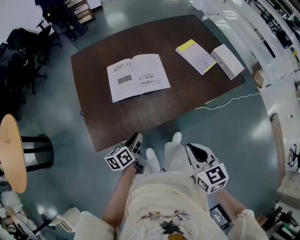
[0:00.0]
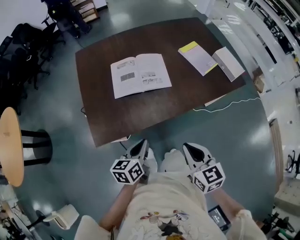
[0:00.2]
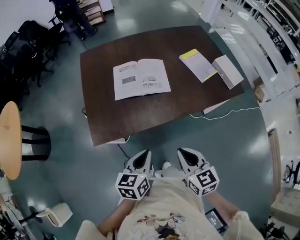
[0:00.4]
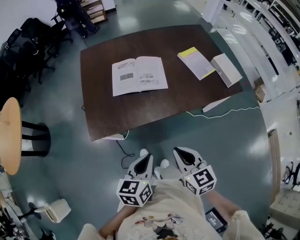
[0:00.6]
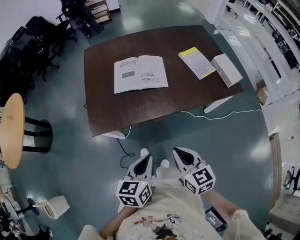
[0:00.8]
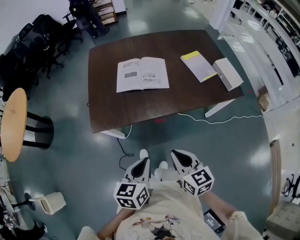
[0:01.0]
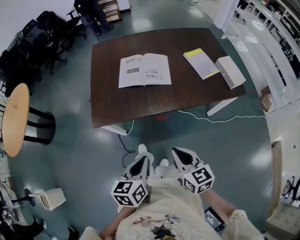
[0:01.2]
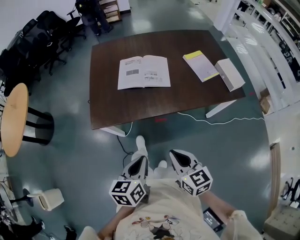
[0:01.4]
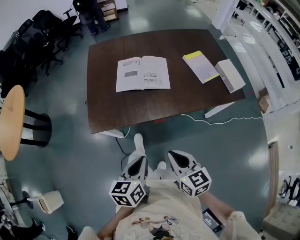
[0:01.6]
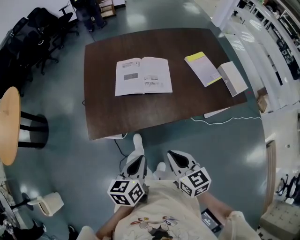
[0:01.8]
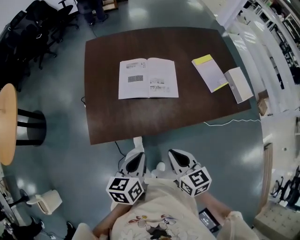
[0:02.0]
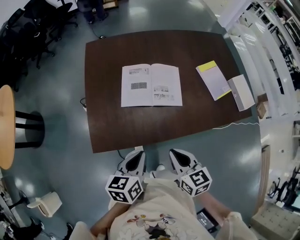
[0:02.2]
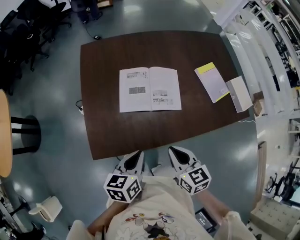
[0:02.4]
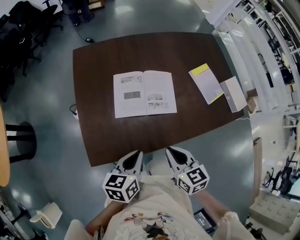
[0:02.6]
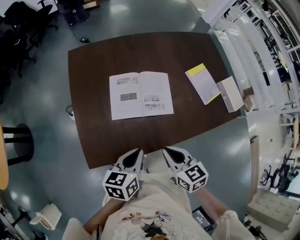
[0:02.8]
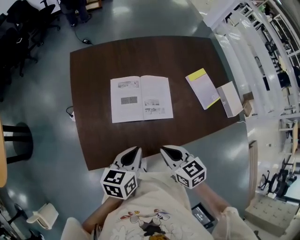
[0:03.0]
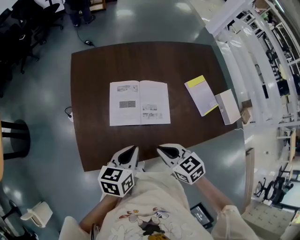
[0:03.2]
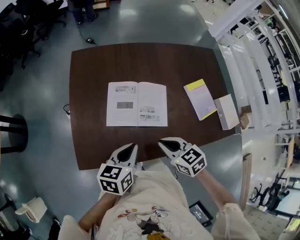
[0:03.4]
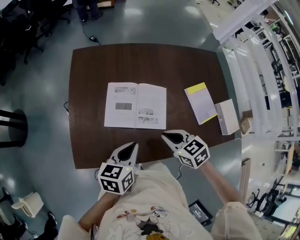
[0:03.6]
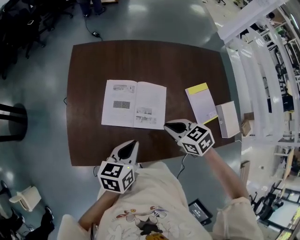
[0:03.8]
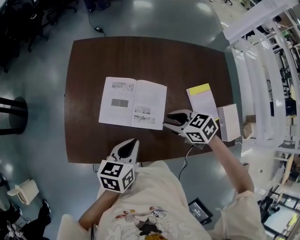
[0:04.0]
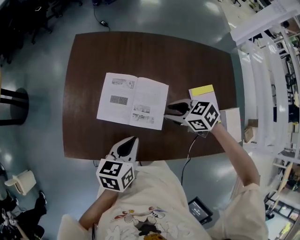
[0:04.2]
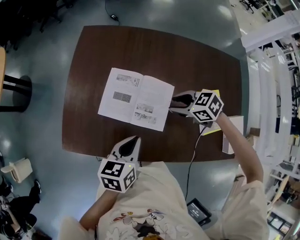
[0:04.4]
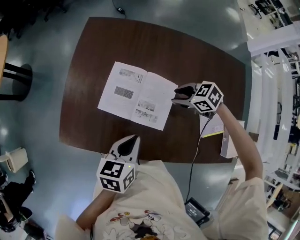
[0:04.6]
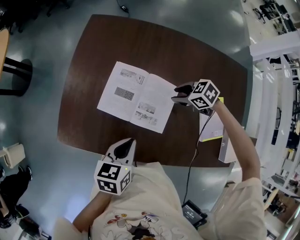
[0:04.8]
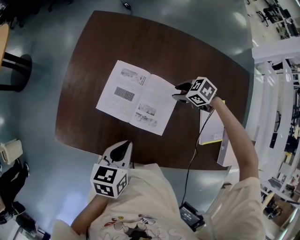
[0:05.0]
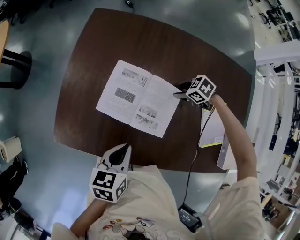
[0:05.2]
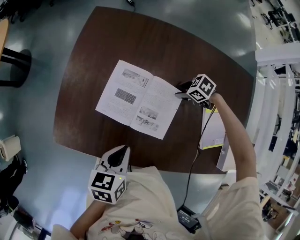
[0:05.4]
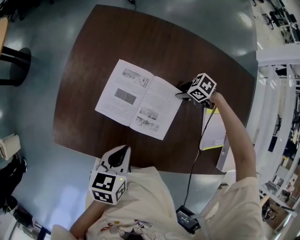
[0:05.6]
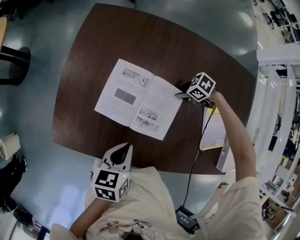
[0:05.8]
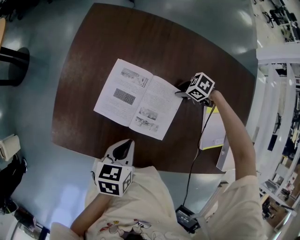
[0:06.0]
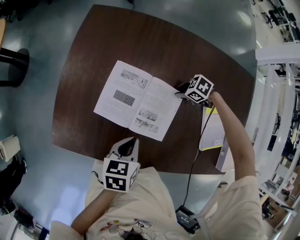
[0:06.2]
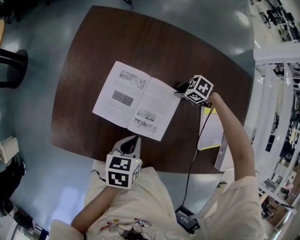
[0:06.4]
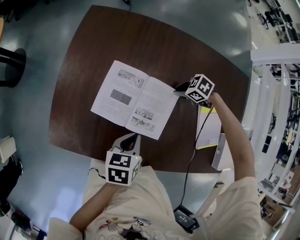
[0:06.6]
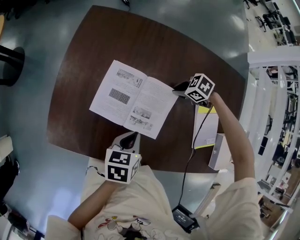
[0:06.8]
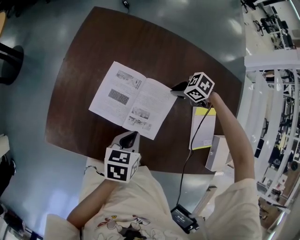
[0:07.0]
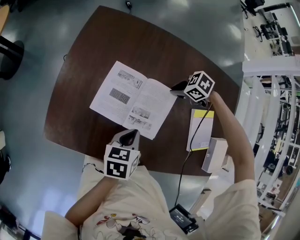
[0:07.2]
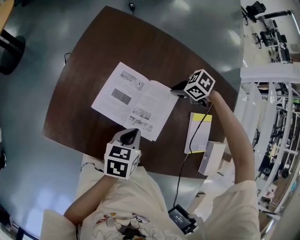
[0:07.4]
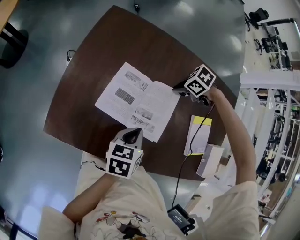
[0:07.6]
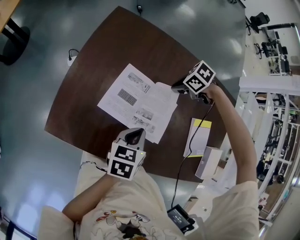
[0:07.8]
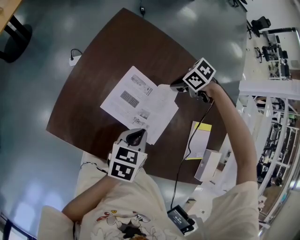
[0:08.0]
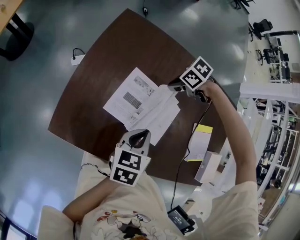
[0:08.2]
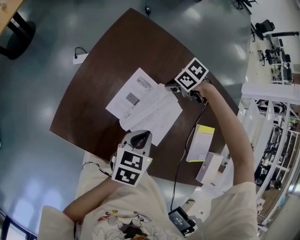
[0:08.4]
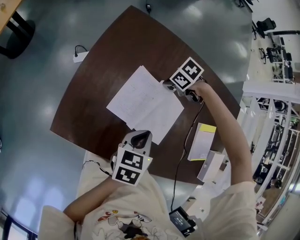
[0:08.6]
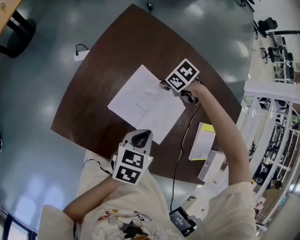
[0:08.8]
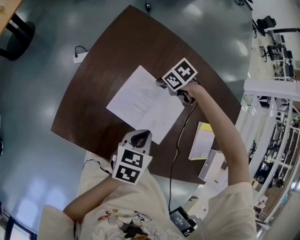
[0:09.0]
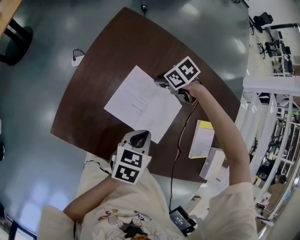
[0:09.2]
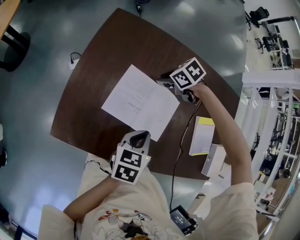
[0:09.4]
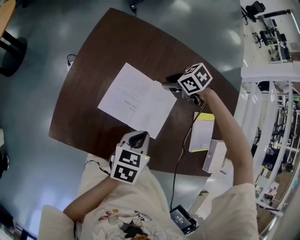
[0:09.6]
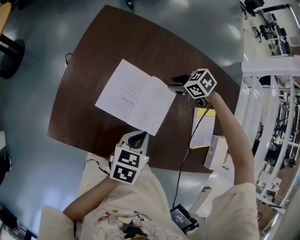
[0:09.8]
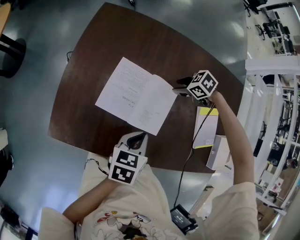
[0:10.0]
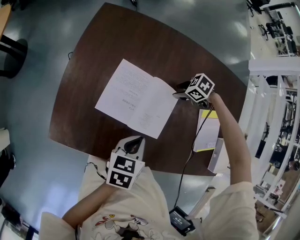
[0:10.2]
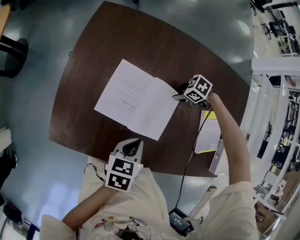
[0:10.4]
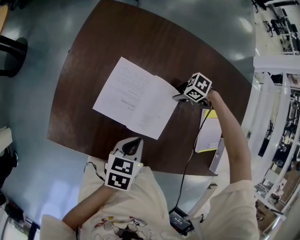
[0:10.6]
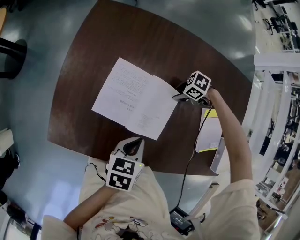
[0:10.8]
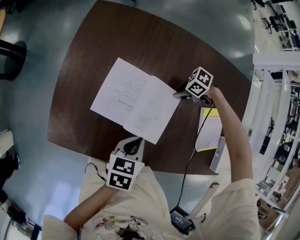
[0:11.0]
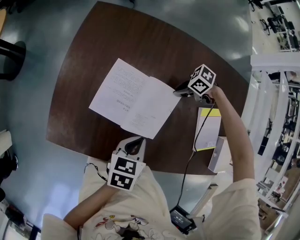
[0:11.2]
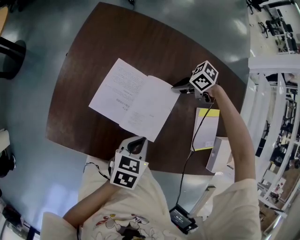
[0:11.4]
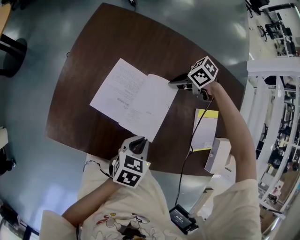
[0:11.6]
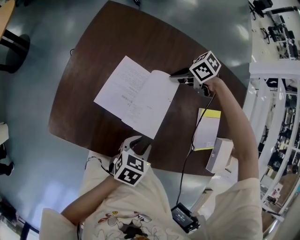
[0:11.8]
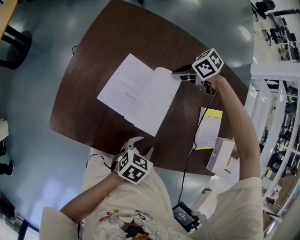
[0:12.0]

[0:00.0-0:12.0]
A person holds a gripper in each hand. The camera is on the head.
0:00.0 to 0:01.6: The right gripper travels backward by some 10 cm. Meanwhile the left gripper heads backward and upward, covering about 25 cm, and rotates roughly 20 degrees.
0:01.6 to 0:03.0: The grippers both shift forward by some 30 cm.
0:03.0 to 0:04.4: The left gripper moves some 15 cm. Meanwhile the right gripper changes place by some 30 cm, swivels roughly 50 degrees, and opens its fingers.
0:04.4 to 0:06.0: The right gripper moves downward, approximately 20 cm, and turns by about 30 degrees; the left gripper is displaced downward by approximately 10 cm.
0:06.0 to 0:07.6: The right gripper shifts about 10 cm upward, and closes.
0:07.6 to 0:09.0: The right gripper shifts by roughly 15 cm.
0:09.0 to 0:10.4: The left gripper shifts by approximately 5 cm. The right gripper moves roughly 20 cm, and opens its fingers.
0:10.4 to 0:12.0: The left gripper shifts by some 10 cm, and opens its fingers, while the right gripper travels upward by some 10 cm, and closes up.

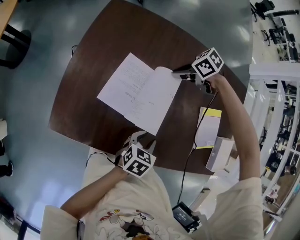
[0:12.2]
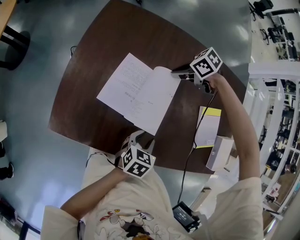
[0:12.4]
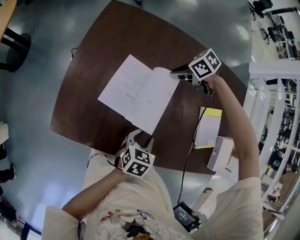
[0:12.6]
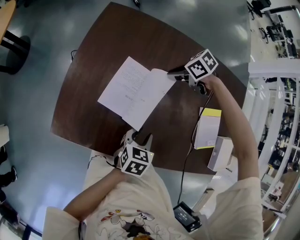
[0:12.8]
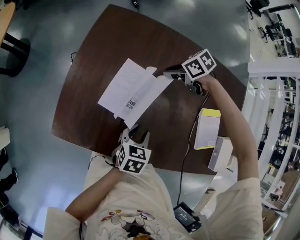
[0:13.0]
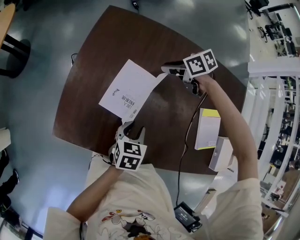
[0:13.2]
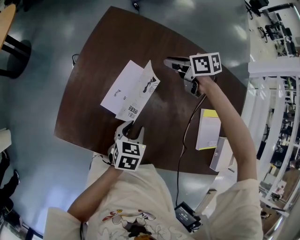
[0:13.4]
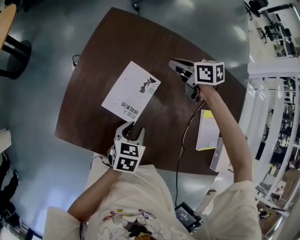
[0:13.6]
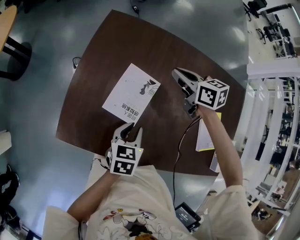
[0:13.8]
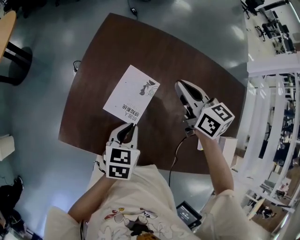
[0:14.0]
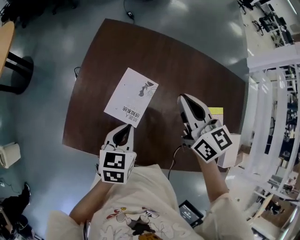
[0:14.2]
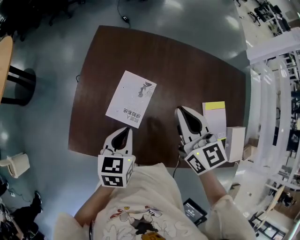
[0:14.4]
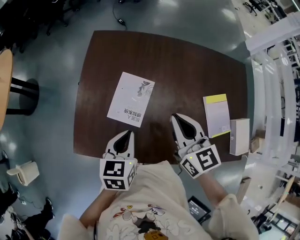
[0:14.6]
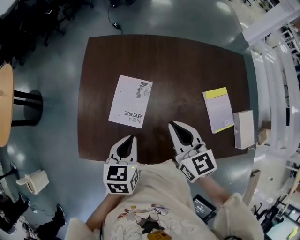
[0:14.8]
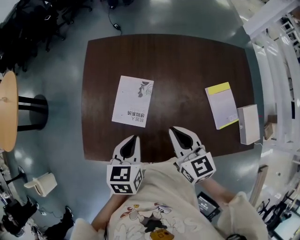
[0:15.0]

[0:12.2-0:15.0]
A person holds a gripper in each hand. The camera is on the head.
0:12.2 to 0:13.6: The left gripper shifts by about 10 cm; the right gripper is displaced upward by roughly 5 cm, and rotates about 40 degrees.
0:13.6 to 0:15.0: The left gripper moves upward, roughly 15 cm, and closes, while the right gripper travels backward by some 30 cm, and changes its angle by some 40 degrees.

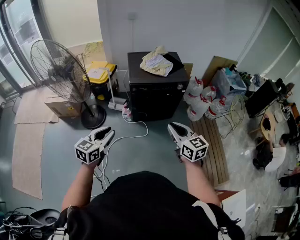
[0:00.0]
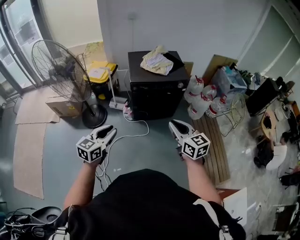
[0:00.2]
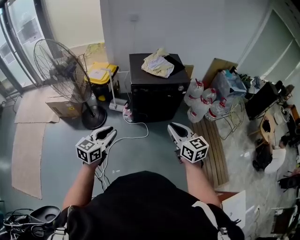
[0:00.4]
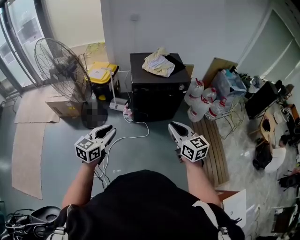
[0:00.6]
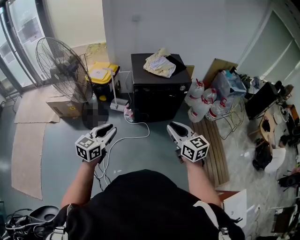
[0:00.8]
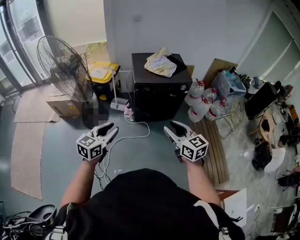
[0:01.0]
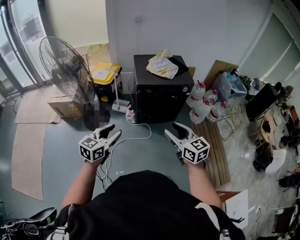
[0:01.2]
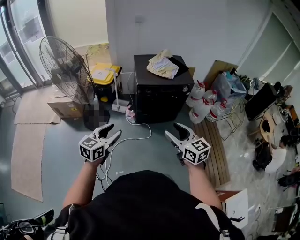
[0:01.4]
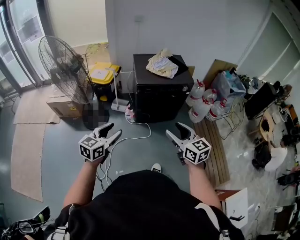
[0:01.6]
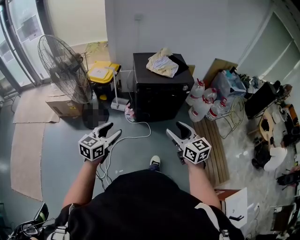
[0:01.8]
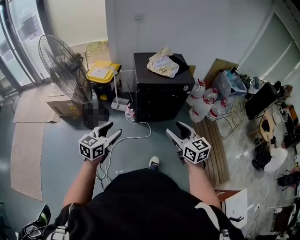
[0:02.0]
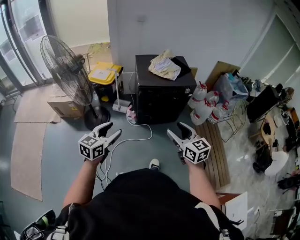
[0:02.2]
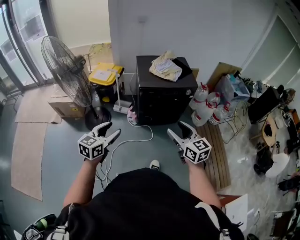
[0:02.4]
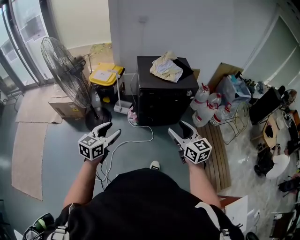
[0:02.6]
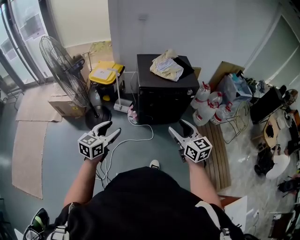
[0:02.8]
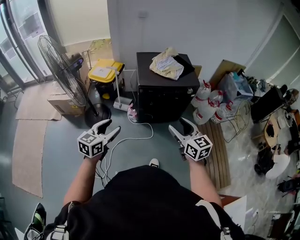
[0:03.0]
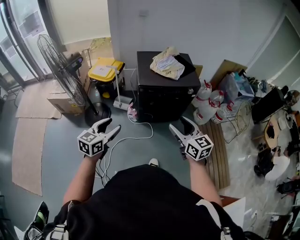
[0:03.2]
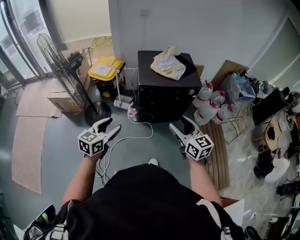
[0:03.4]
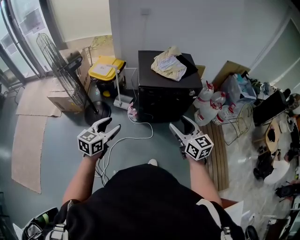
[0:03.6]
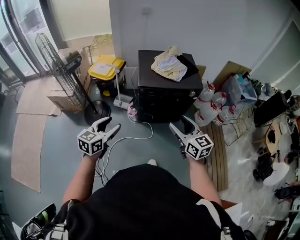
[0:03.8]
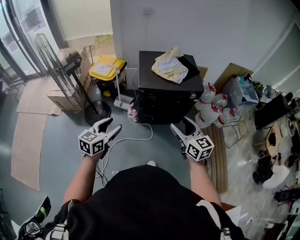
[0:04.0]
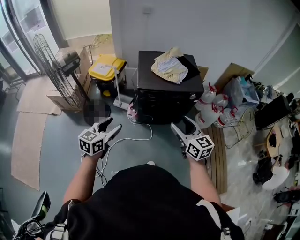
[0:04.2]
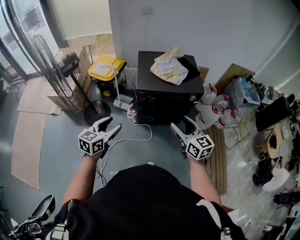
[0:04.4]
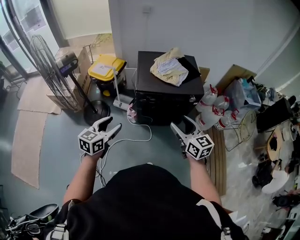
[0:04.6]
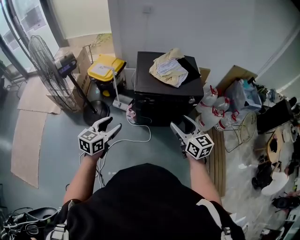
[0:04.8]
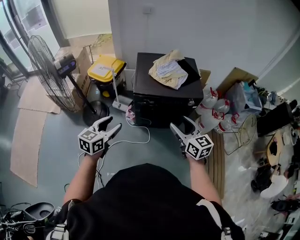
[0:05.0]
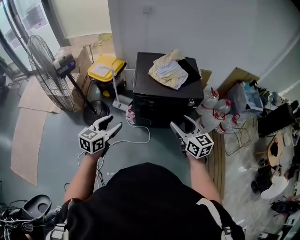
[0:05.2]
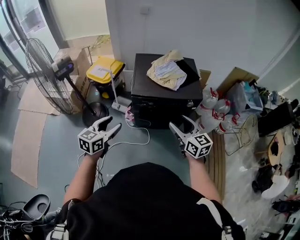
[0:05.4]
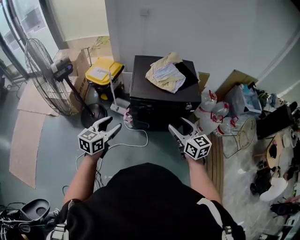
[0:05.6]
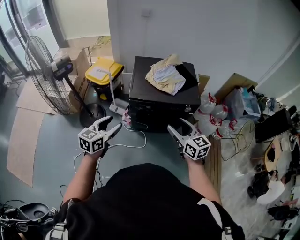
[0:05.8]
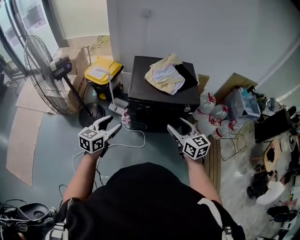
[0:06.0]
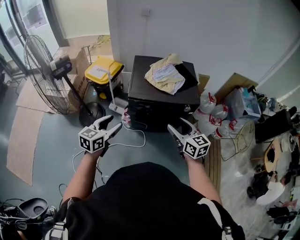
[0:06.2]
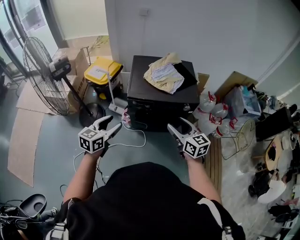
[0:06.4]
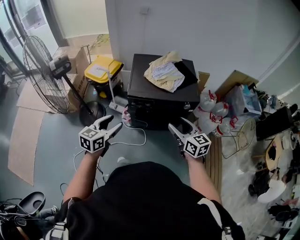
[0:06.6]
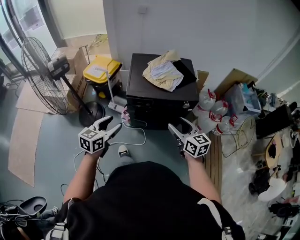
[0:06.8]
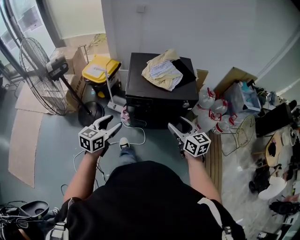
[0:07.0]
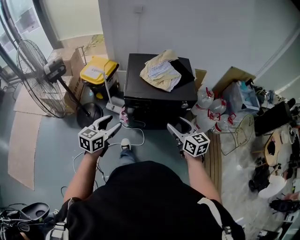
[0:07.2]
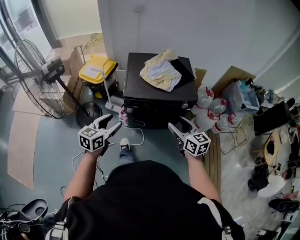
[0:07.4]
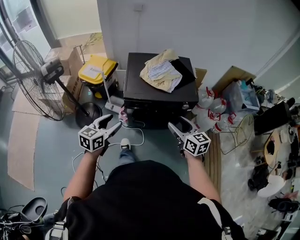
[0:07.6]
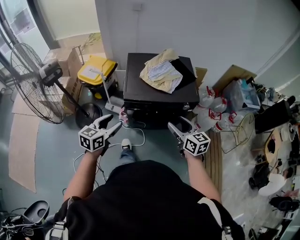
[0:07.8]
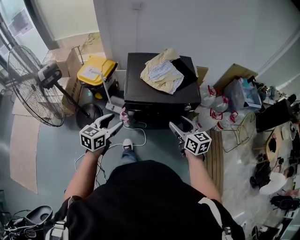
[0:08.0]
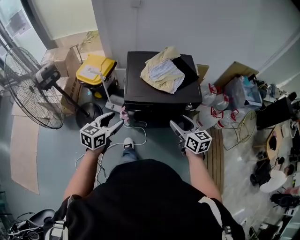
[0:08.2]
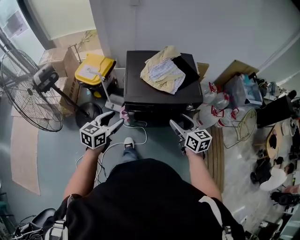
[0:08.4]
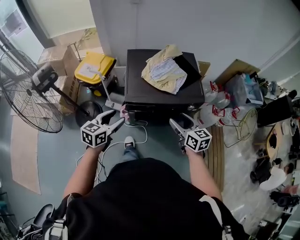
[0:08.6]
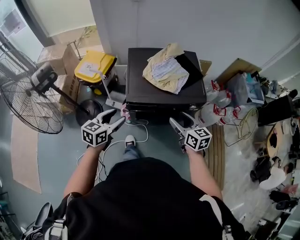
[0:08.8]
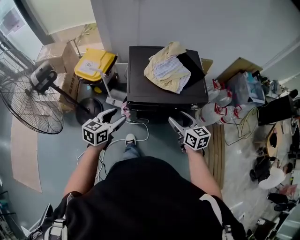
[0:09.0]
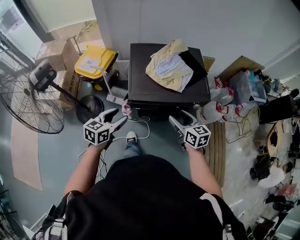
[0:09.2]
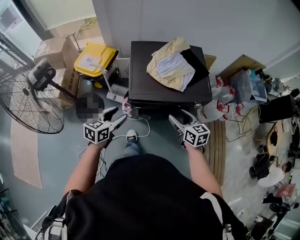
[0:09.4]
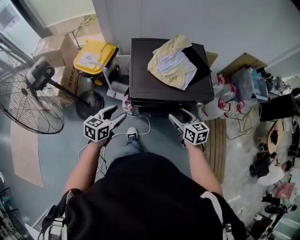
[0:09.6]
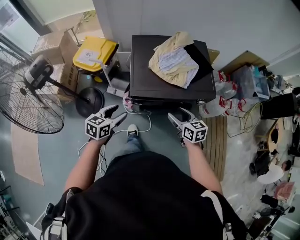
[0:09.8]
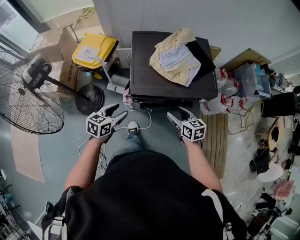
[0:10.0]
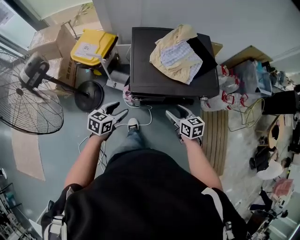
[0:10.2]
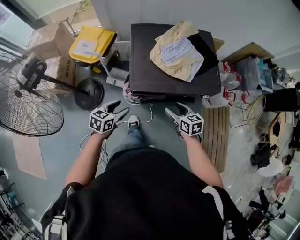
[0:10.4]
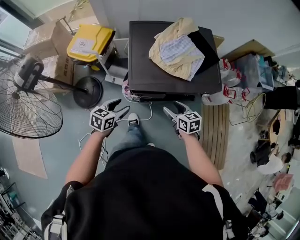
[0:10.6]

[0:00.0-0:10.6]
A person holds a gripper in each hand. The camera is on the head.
0:00.0 to 0:01.6: Both grippers travel together to the left, approximately 5 cm. The right gripper opens its fingers. Meanwhile the left gripper opens up.
0:01.6 to 0:03.0: The two grippers go roughly 10 cm forward.
0:03.0 to 0:04.6: Both grippers travel together forward and to the right, roughly 15 cm.
0:04.6 to 0:06.0: The left gripper heads forward and to the right, covering approximately 10 cm; the right gripper moves forward, roughly 10 cm.
0:06.0 to 0:07.6: The right gripper changes place by roughly 5 cm.
0:07.6 to 0:09.0: The right gripper moves forward and downward, approximately 10 cm, while the left gripper heads forward, covering approximately 10 cm.
0:09.0 to 0:10.6: The two grippers go roughly 15 cm downward.
